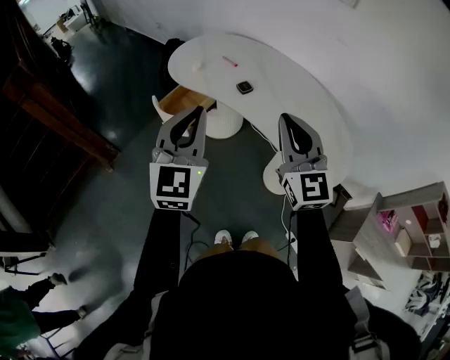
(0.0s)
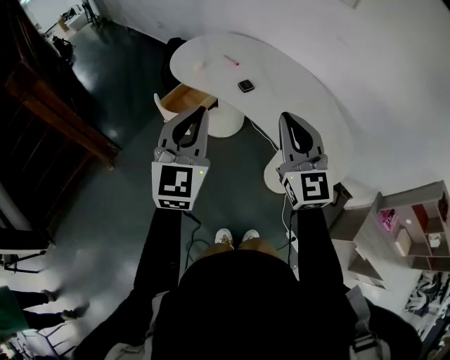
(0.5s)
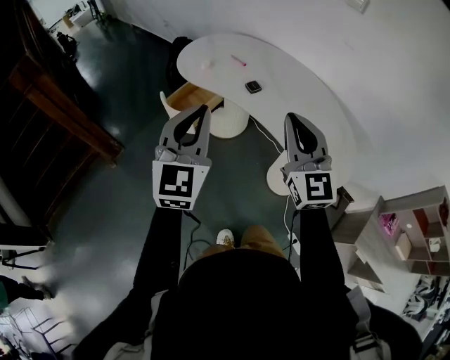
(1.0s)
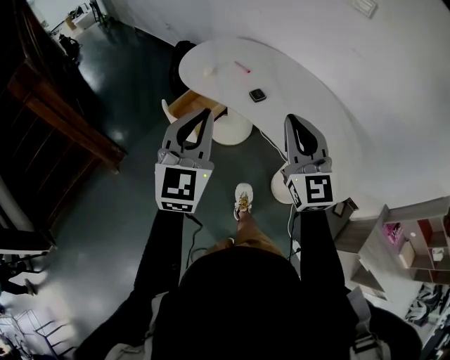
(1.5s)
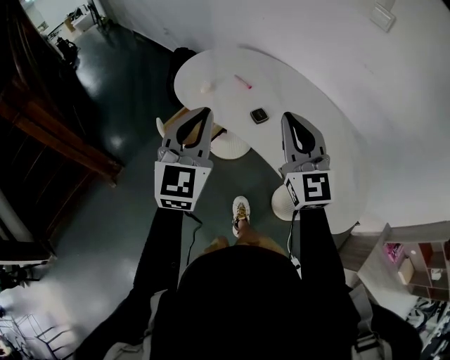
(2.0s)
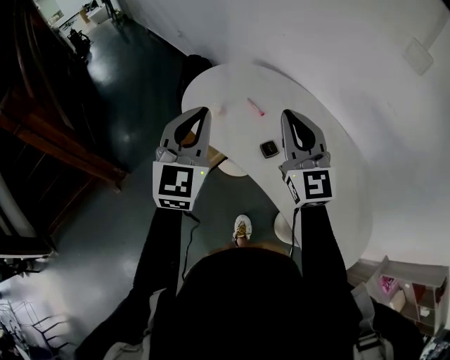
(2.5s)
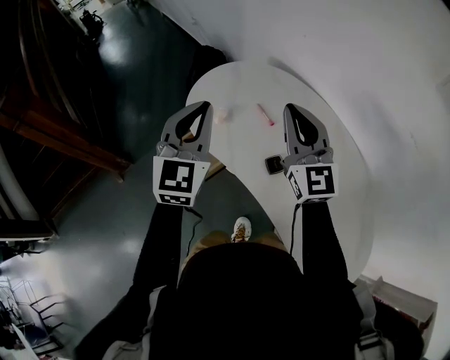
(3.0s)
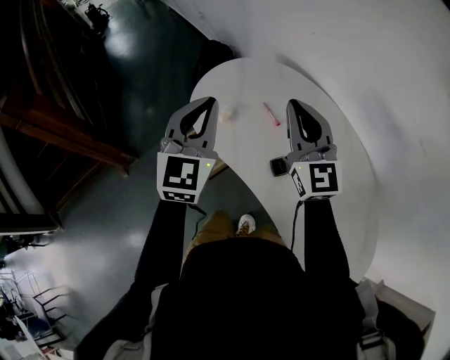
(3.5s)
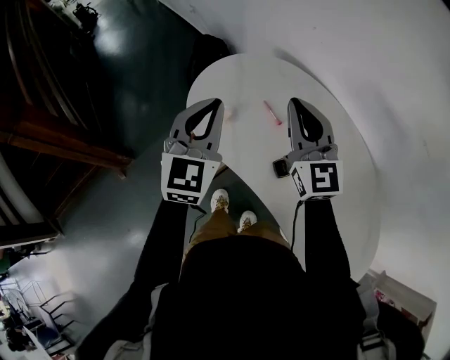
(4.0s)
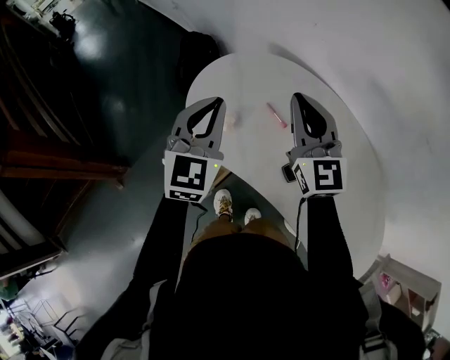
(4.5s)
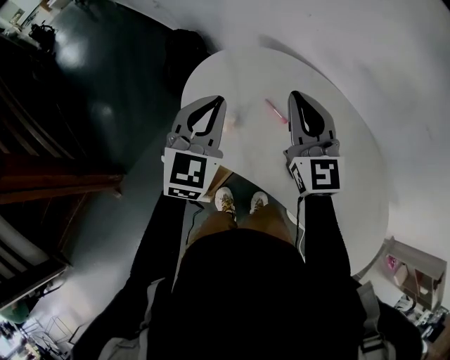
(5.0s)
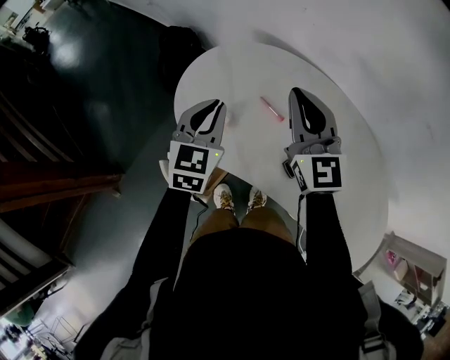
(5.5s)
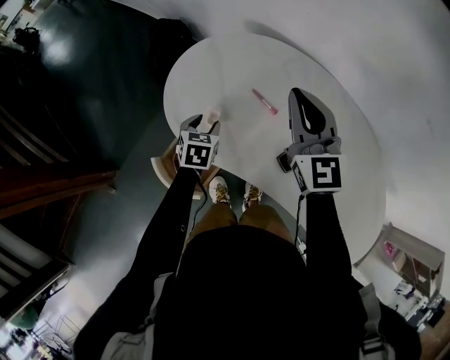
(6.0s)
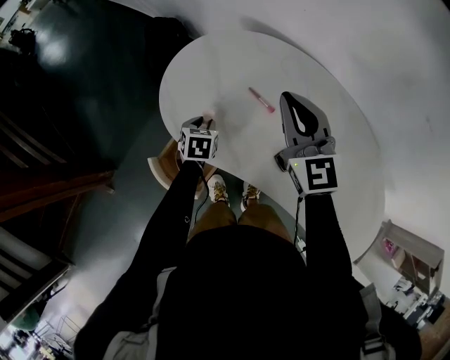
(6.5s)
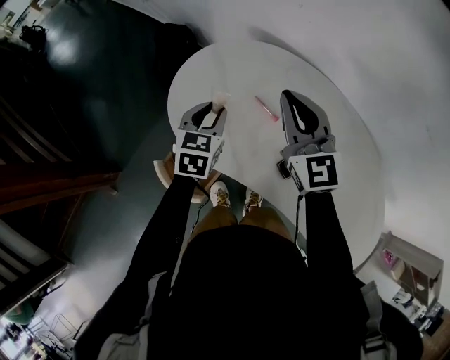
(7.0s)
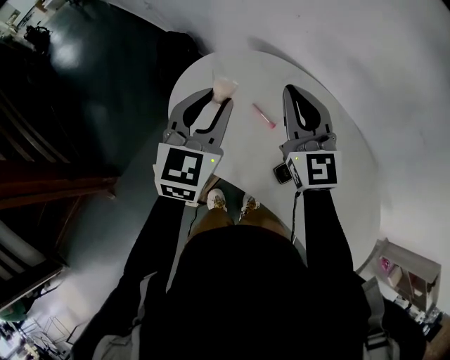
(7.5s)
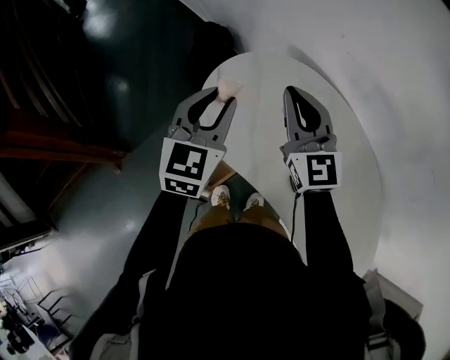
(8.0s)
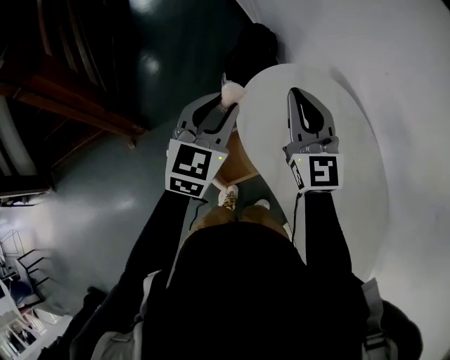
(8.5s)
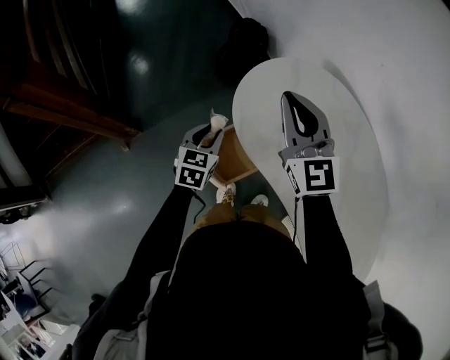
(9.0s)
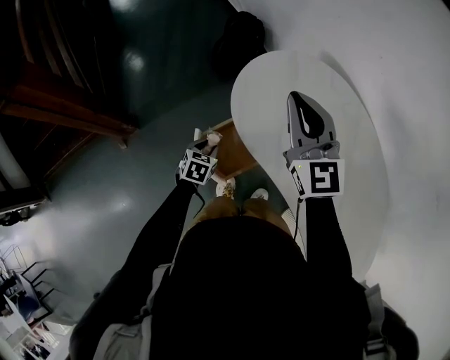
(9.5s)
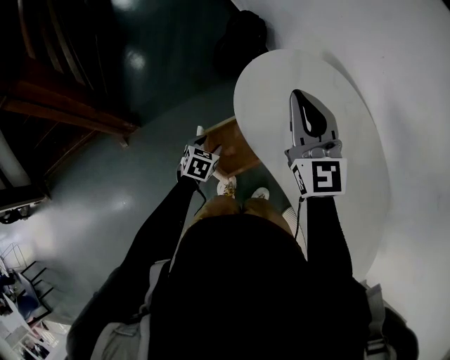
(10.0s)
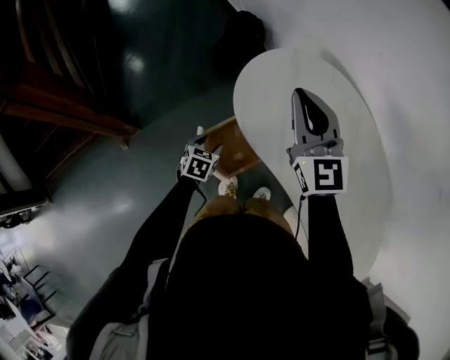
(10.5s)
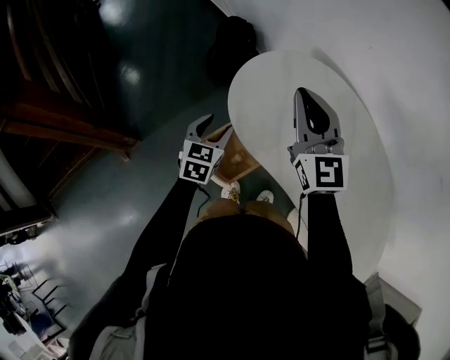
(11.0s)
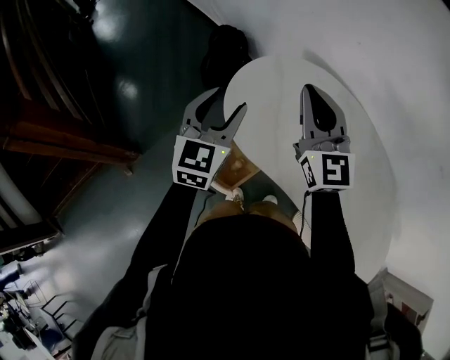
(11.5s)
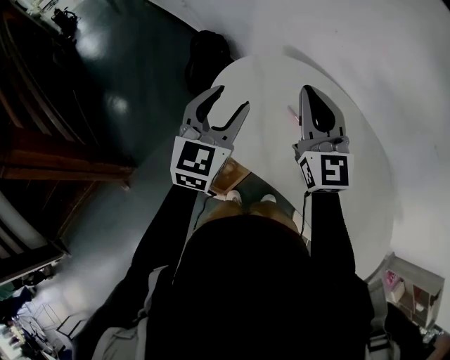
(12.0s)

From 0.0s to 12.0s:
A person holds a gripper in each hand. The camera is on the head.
From 0.0s to 2.0s: Both grippers move forward, about 15 cm.
From 2.0s to 4.0s: The two grippers go some 30 cm forward.
From 4.0s to 6.0s: The left gripper is displaced downward by roughly 30 cm, tips its fingers downward by approximately 40 degrees, and opens up. Meanwhile the right gripper travels forward by approximately 5 cm.
From 6.0s to 8.0s: The right gripper goes about 10 cm to the left. Meanwhile the left gripper is displaced upward by approximately 25 cm, and tilts its fingers some 40 degrees upward.
From 8.0s to 10.0s: The left gripper heads downward and to the left, covering approximately 40 cm, angles its fingers downward, by roughly 40 degrees, and opens. Meanwhile the right gripper heads to the left, covering approximately 10 cm.
From 10.0s to 12.0s: The left gripper heads upward, covering some 35 cm, and points its fingers approximately 50 degrees further upward; the right gripper moves to the right, approximately 10 cm.

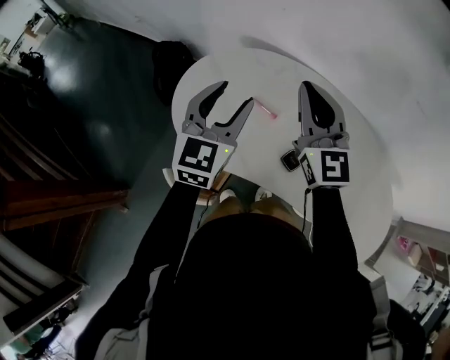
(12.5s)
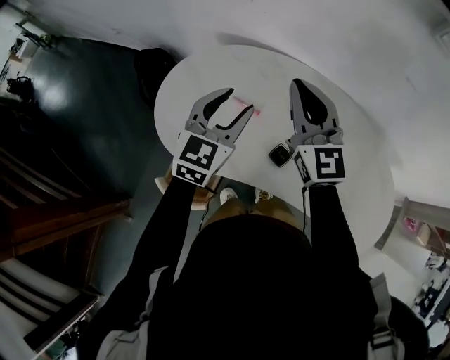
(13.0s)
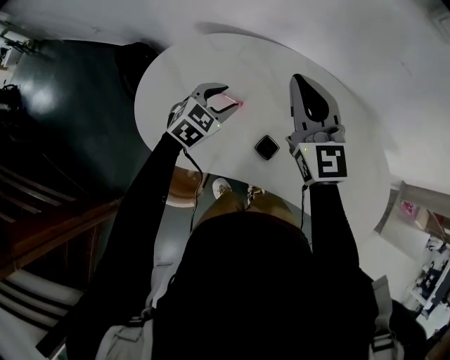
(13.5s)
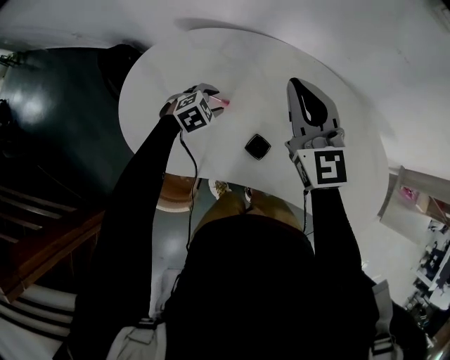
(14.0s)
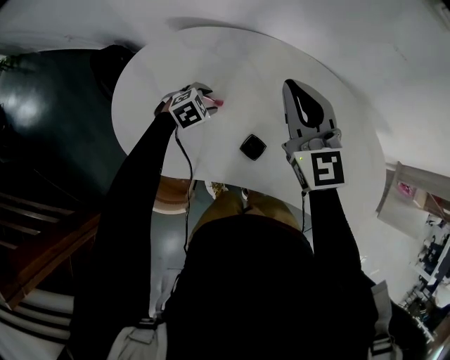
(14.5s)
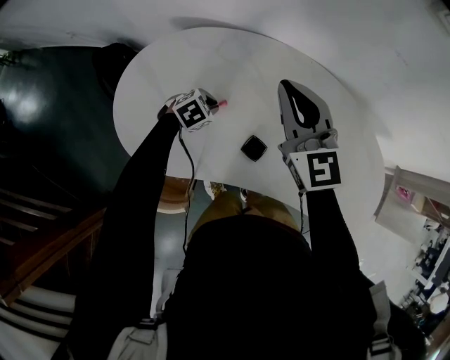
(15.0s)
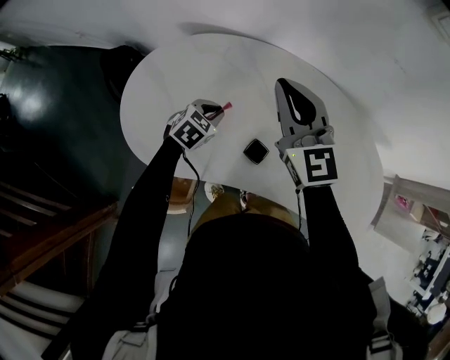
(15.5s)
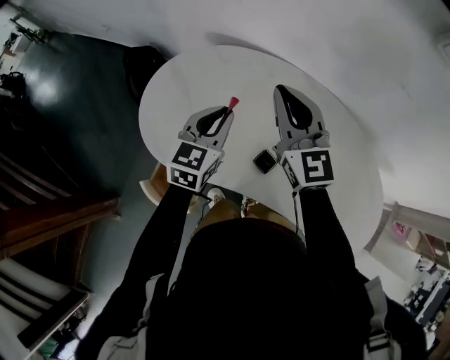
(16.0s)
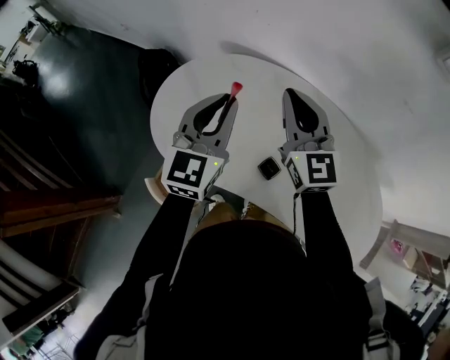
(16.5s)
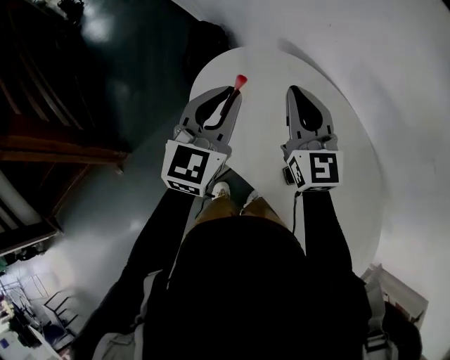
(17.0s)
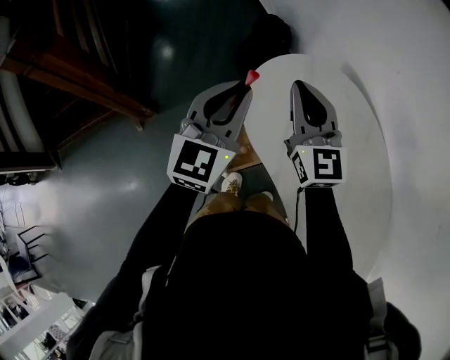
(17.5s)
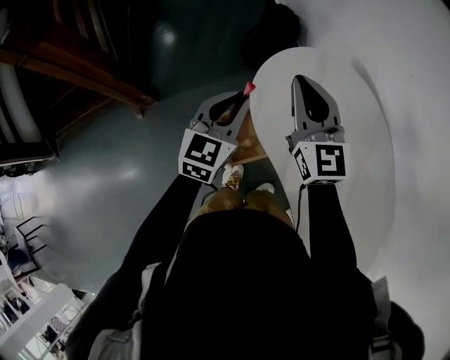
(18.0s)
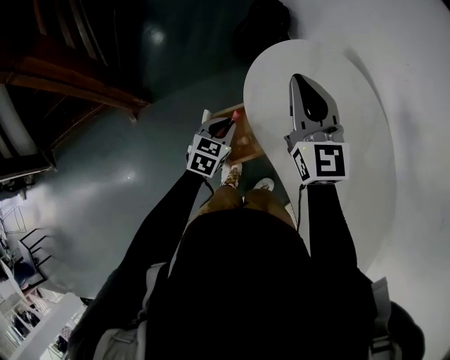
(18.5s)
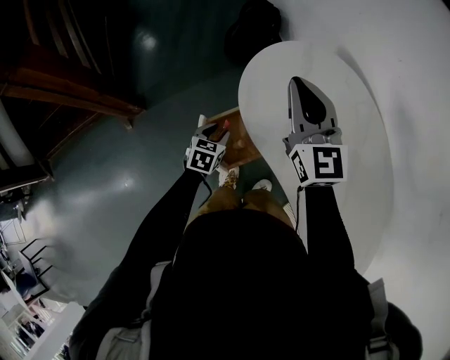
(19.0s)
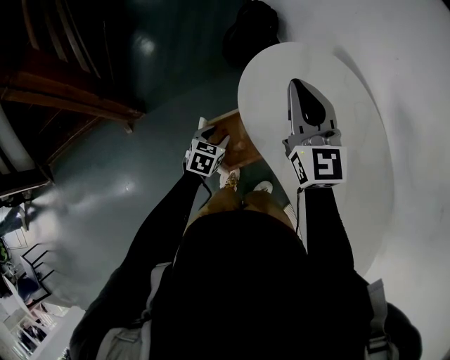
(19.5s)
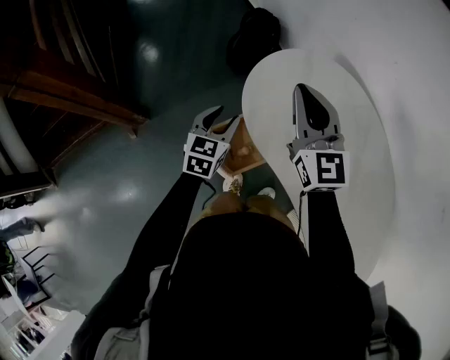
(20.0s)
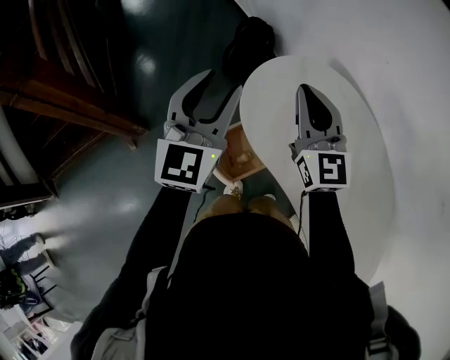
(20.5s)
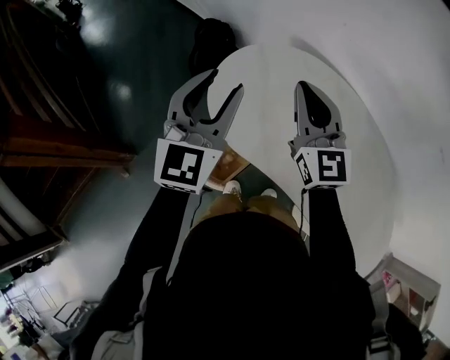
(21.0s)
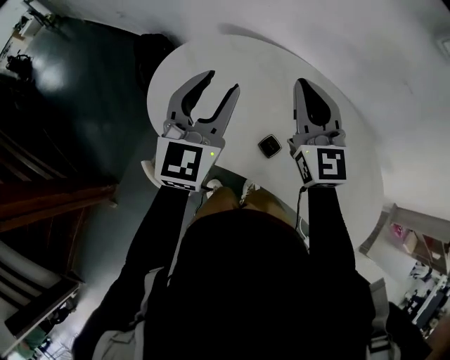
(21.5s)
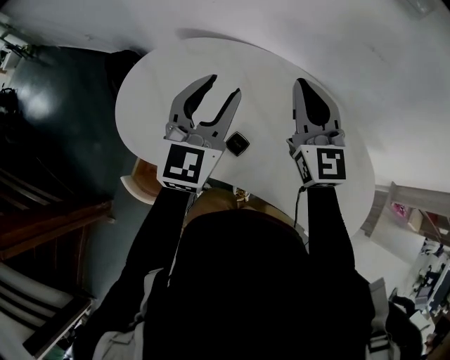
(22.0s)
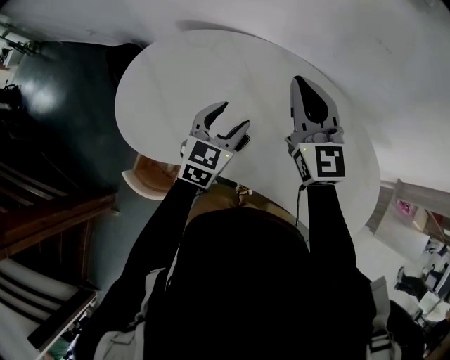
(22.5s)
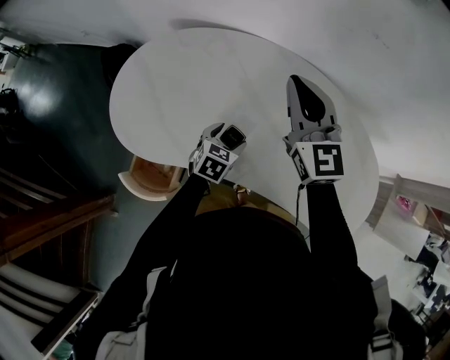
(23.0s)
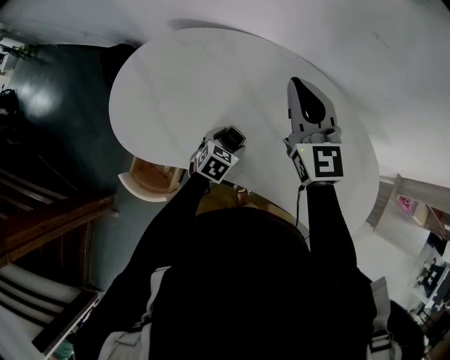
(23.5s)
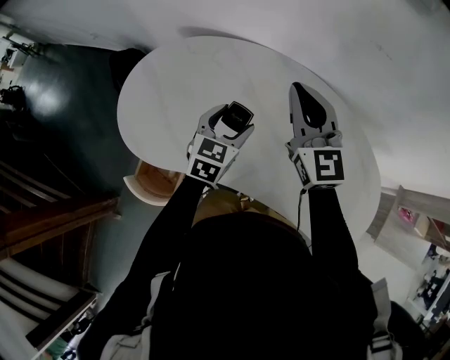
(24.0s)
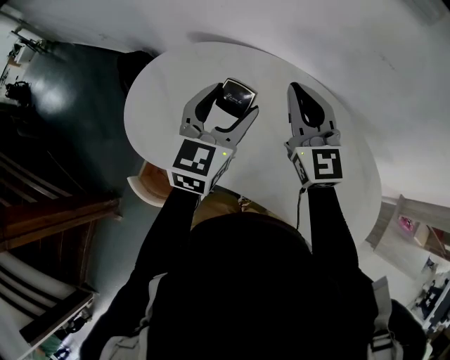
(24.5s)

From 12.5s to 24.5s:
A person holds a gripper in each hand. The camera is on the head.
From 12.5s to 14.5s: The left gripper goes some 30 cm downward, and points its fingers approximately 60 degrees further downward; the right gripper shifts by some 15 cm.
From 14.5s to 16.5s: The right gripper changes place by some 10 cm; the left gripper shifts approximately 35 cm upward, tilts its fingers roughly 60 degrees upward, and closes its fingers.
From 16.5s to 18.5s: The left gripper is displaced downward by some 30 cm, and tips its fingers downward by approximately 40 degrees; the right gripper changes place by about 30 cm, and changes its angle by some 40 degrees.
From 18.5s to 20.5s: The left gripper goes roughly 30 cm upward, tips its fingers upward by about 40 degrees, and opens up.
From 20.5s to 22.5s: The right gripper ends up approximately 40 cm from where it was, and rotates roughly 40 degrees. The left gripper moves about 40 cm, and rotates roughly 60 degrees.
From 22.5s to 24.5s: The left gripper moves upward, some 10 cm.

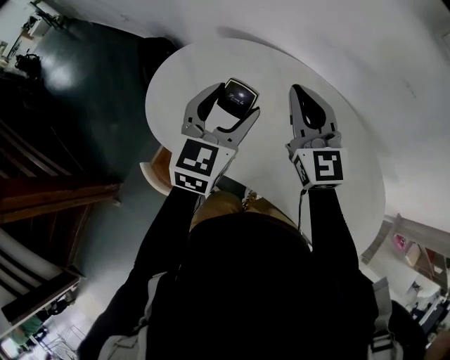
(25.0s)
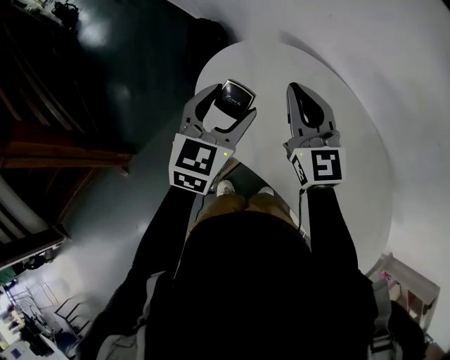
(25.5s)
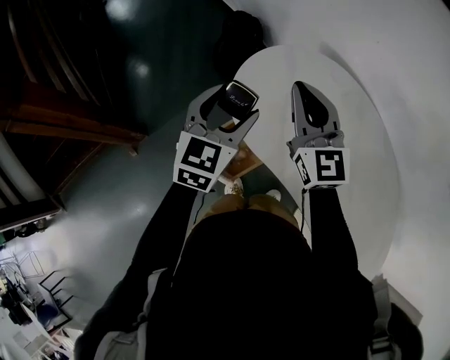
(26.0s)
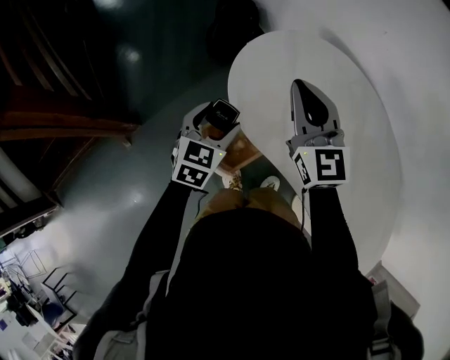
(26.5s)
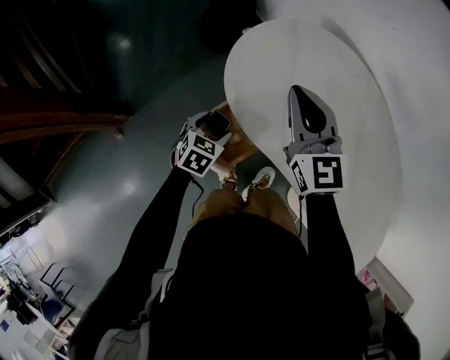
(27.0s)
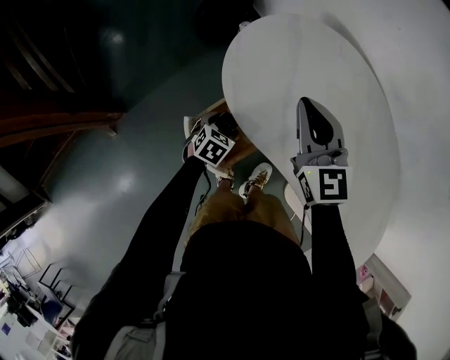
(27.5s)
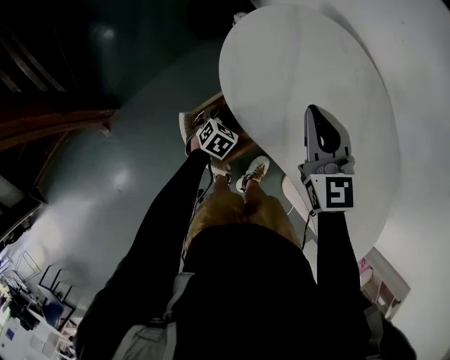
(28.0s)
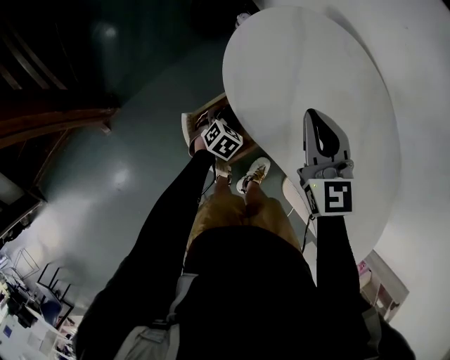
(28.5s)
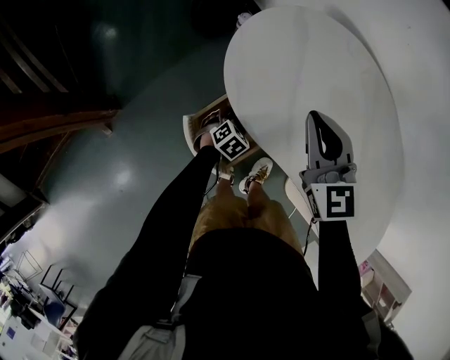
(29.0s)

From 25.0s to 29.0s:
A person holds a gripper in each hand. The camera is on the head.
From 25.0s to 27.0s: The right gripper moves to the left, roughly 25 cm, and turns by some 30 degrees. Meanwhile the left gripper moves downward and to the left, some 40 cm, and points its fingers some 40 degrees further downward.
From 27.0s to 29.0s: The left gripper shifts about 15 cm downward and to the right; the right gripper ends up approximately 5 cm from where it was.
